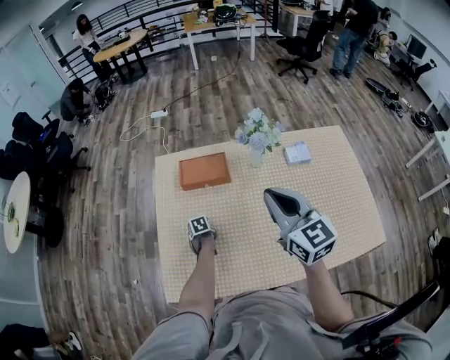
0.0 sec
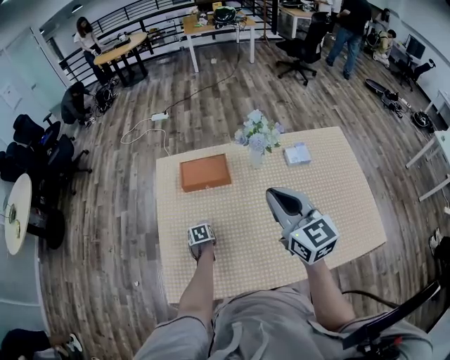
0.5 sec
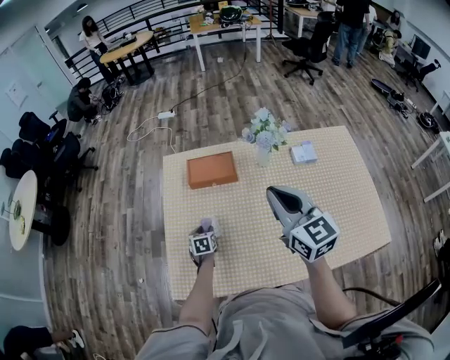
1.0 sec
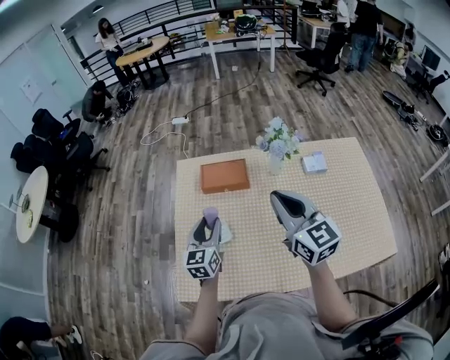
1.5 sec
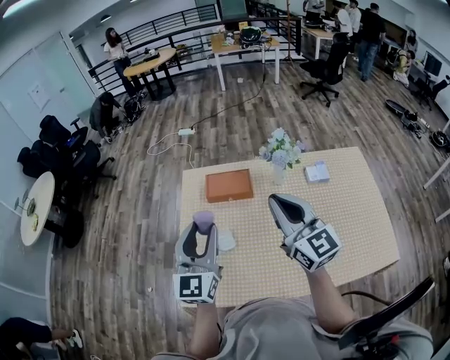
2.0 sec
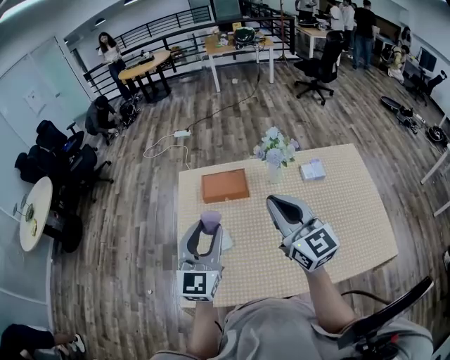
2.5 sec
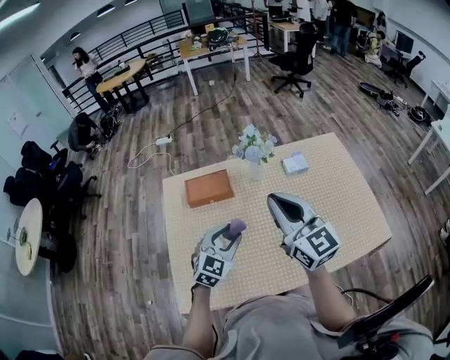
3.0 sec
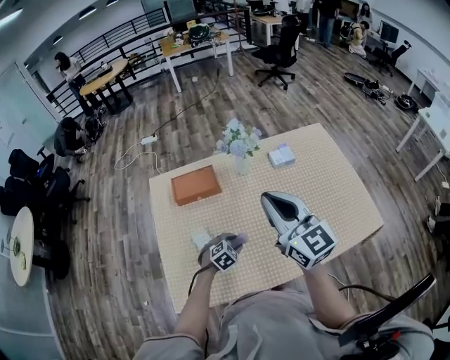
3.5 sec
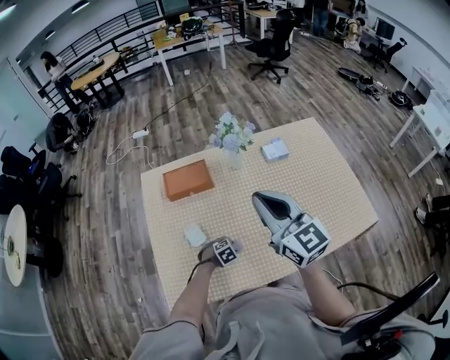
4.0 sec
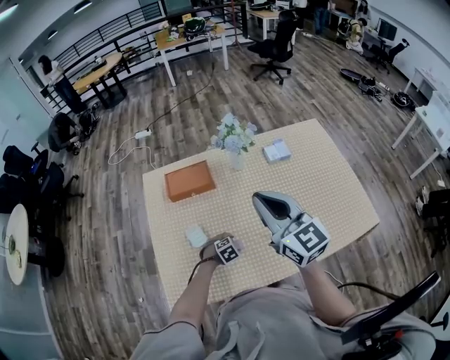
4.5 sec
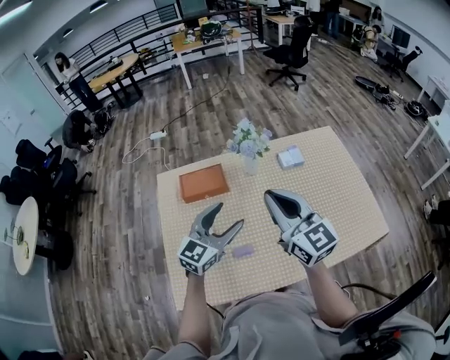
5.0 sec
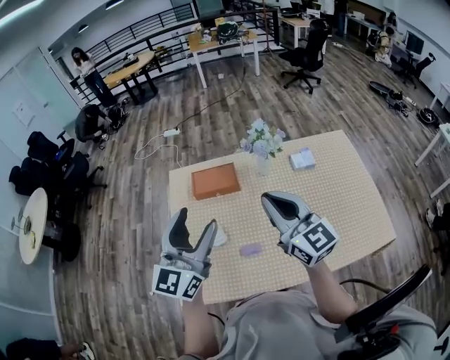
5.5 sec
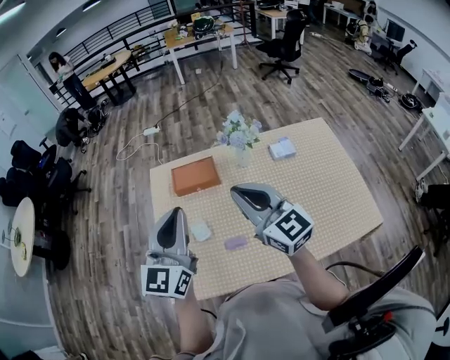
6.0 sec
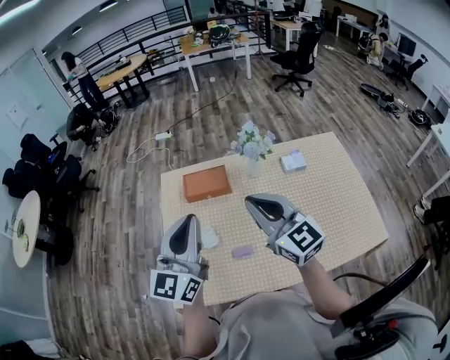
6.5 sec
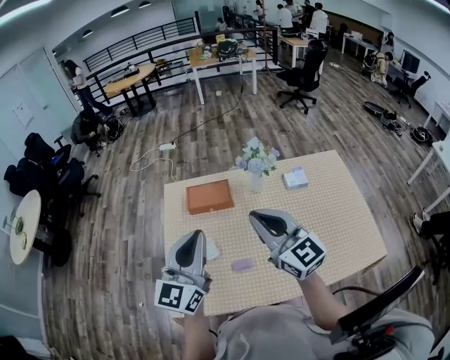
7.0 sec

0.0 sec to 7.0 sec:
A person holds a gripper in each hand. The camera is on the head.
0.0 sec to 2.0 sec: The right gripper is displaced upward by some 5 cm, while the left gripper goes some 50 cm upward, and angles its fingers upward, by about 70 degrees.
2.0 sec to 3.5 sec: The right gripper changes place by about 10 cm. Meanwhile the left gripper travels downward by roughly 40 cm, and angles its fingers downward, by about 60 degrees.
3.5 sec to 5.0 sec: The left gripper moves upward, about 30 cm, tilts its fingers about 50 degrees upward, and opens up.
5.0 sec to 7.0 sec: The left gripper moves upward, to the left and backward, about 15 cm, turns by some 30 degrees, and closes; the right gripper is displaced to the left by about 5 cm.

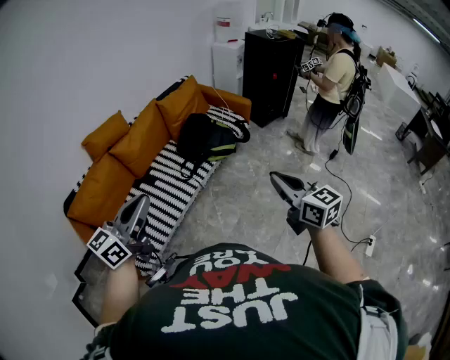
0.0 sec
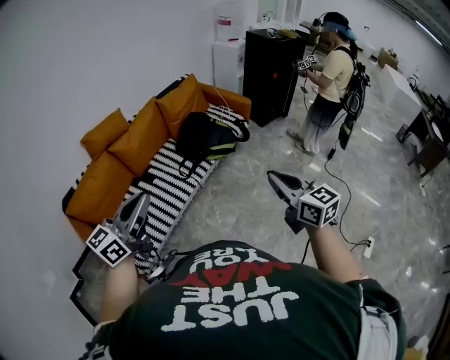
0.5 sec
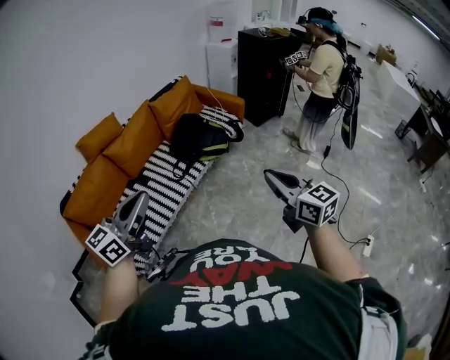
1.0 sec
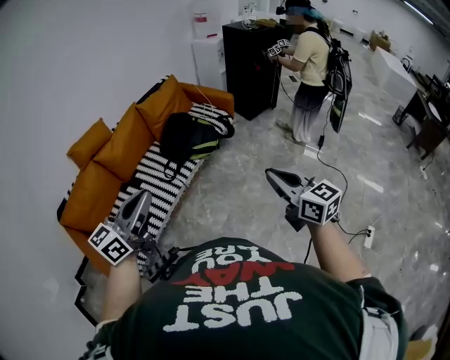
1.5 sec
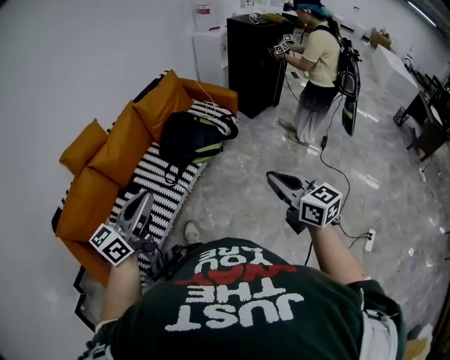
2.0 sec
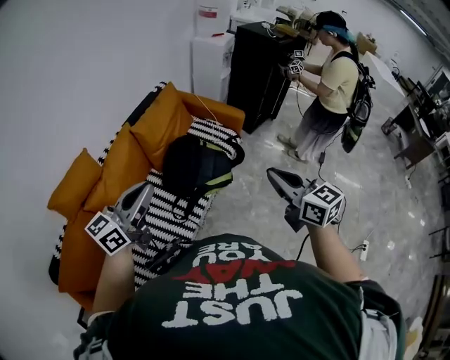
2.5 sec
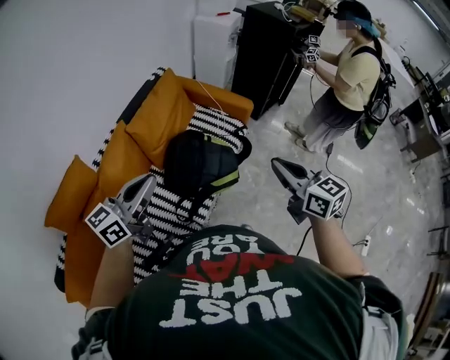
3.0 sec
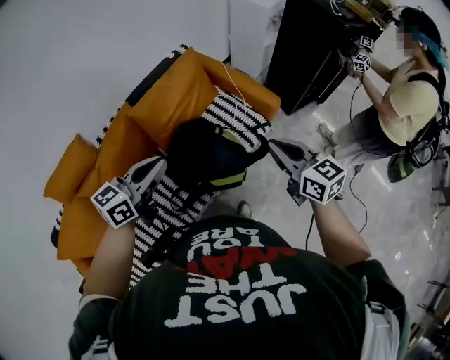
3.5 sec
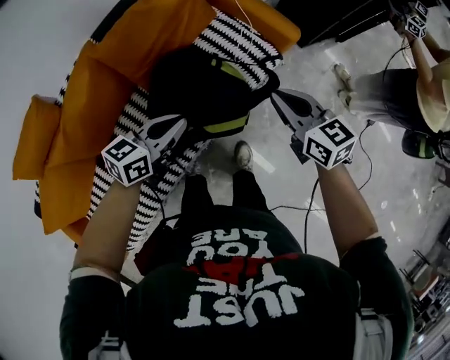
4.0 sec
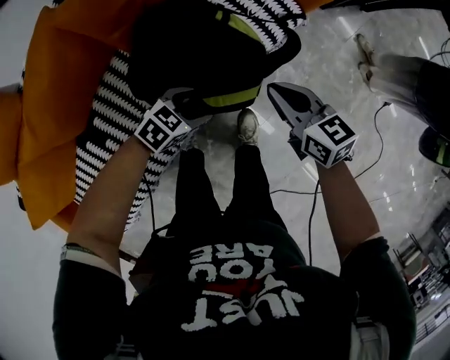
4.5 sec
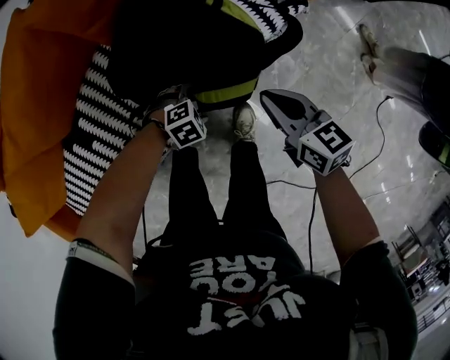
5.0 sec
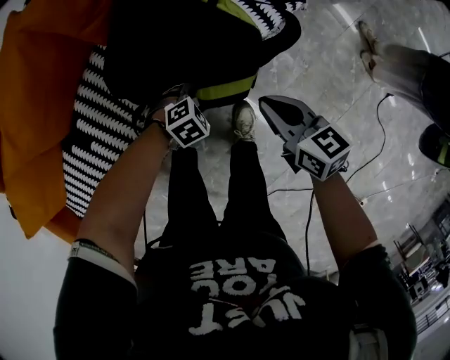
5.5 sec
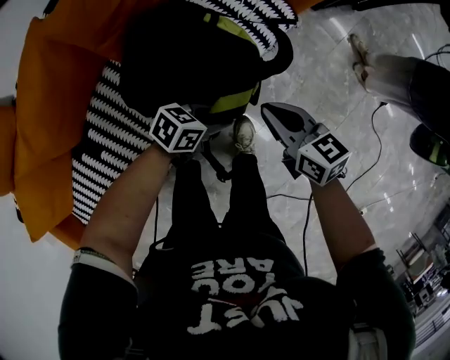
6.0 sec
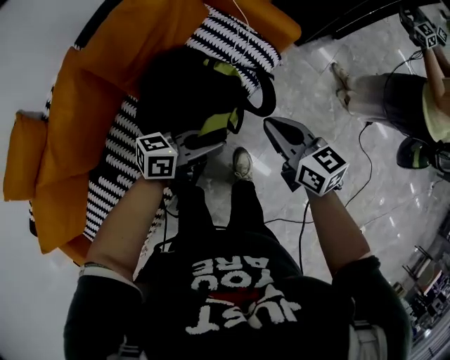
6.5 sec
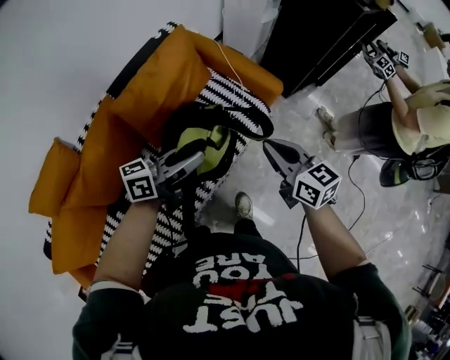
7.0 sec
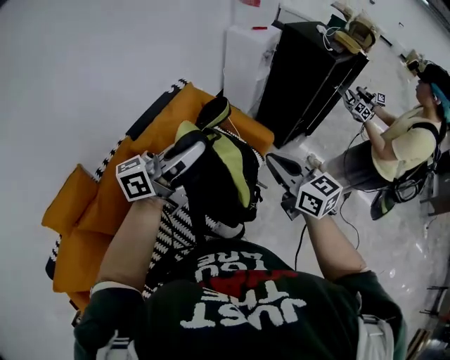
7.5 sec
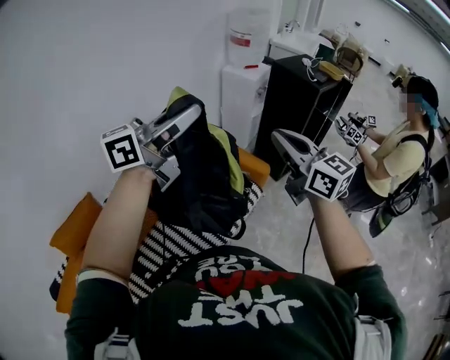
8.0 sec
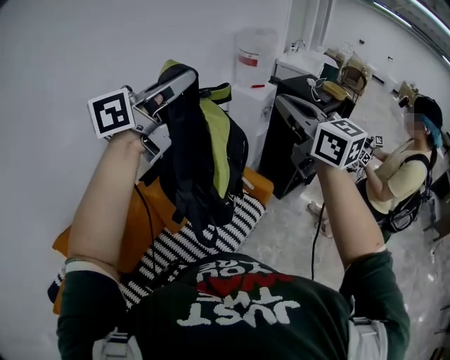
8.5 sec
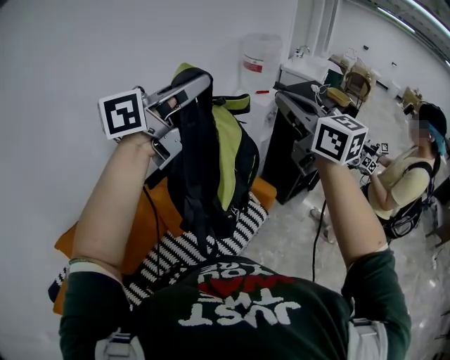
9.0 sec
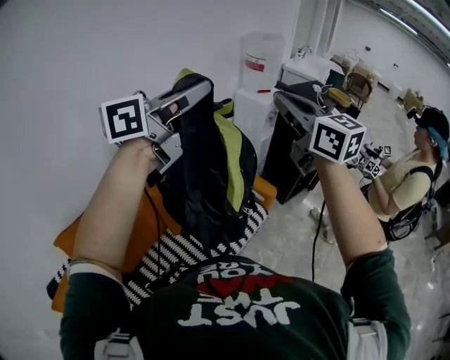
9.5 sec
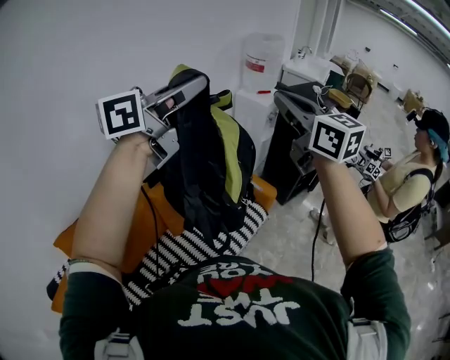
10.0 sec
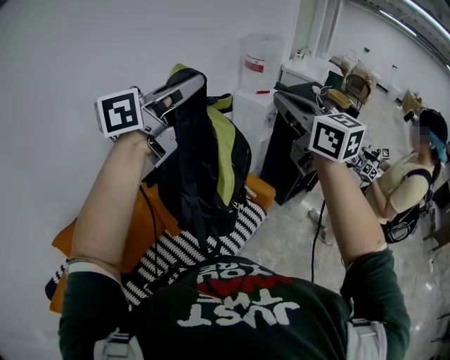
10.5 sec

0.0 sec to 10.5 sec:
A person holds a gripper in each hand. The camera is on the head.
0.0 sec to 2.0 sec: The grippers both shift forward and to the right by about 15 cm.
2.0 sec to 4.0 sec: The pair of grippers is taken forward, roughly 60 cm. The grippers both shift downward by about 25 cm. The left gripper turns by some 30 degrees.
4.0 sec to 6.5 sec: The right gripper travels downward by approximately 10 cm; the left gripper moves approximately 35 cm downward and comes back, turns by roughly 30 degrees, and opens, then closes again.
6.5 sec to 8.5 sec: Both grippers travel together upward, about 60 cm. The left gripper swivels about 50 degrees. The right gripper tilts its fingers roughly 30 degrees upward.
8.5 sec to 10.5 sec: The grippers stay close to where they were, moving slightly.

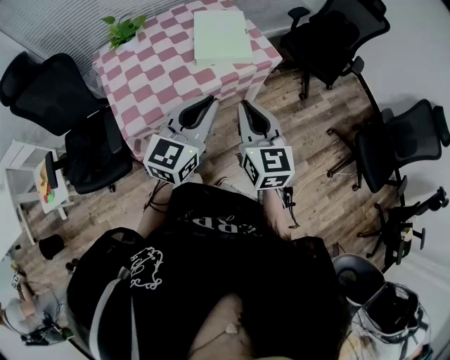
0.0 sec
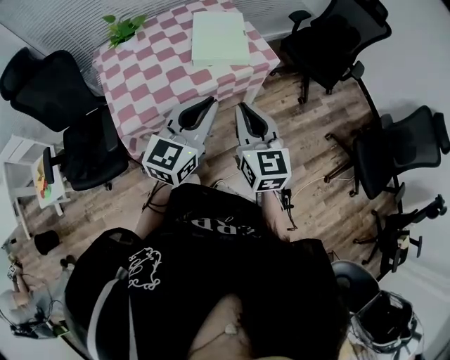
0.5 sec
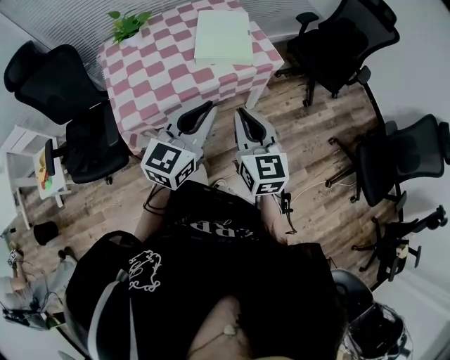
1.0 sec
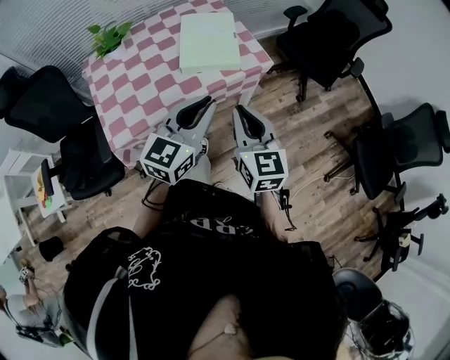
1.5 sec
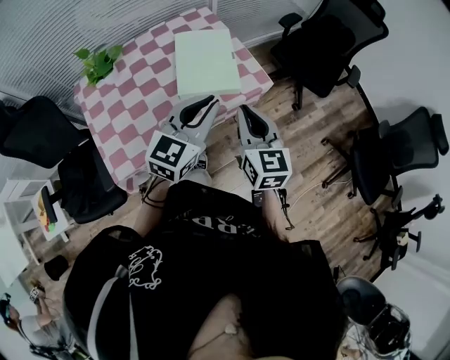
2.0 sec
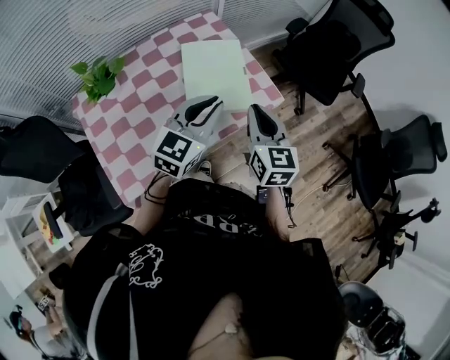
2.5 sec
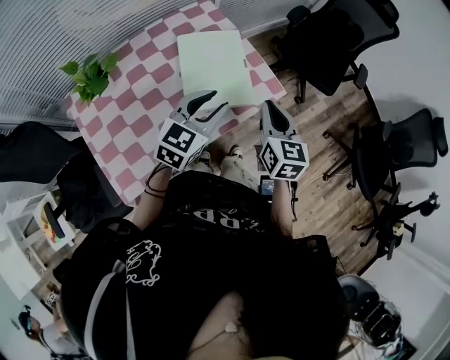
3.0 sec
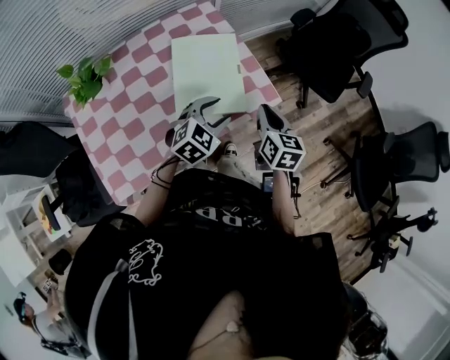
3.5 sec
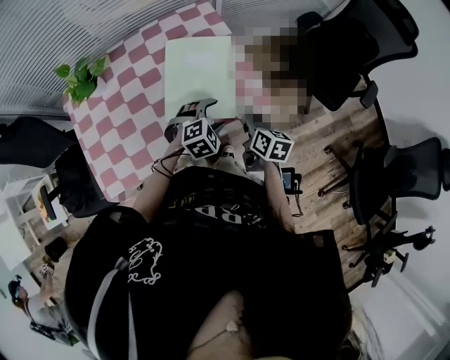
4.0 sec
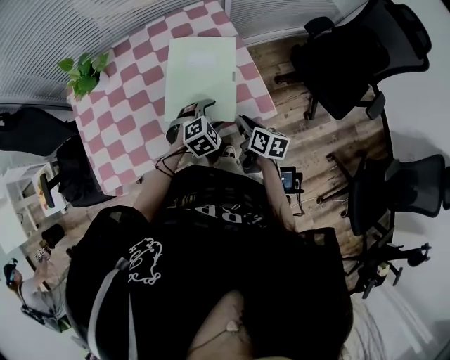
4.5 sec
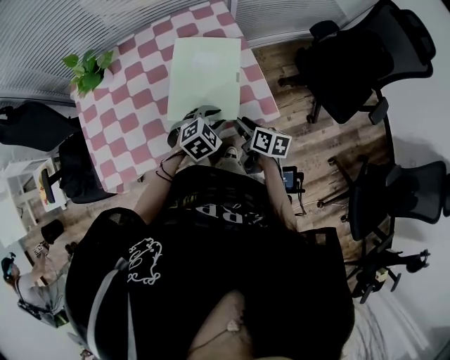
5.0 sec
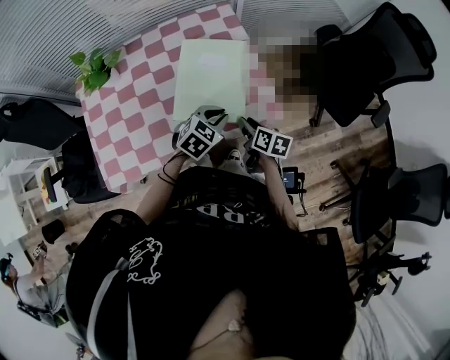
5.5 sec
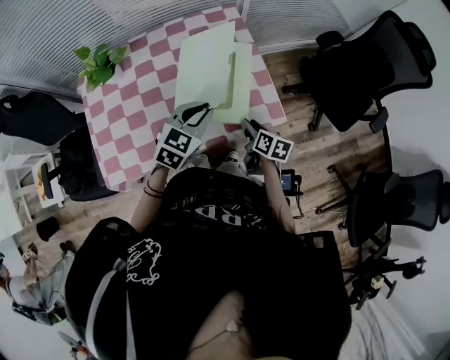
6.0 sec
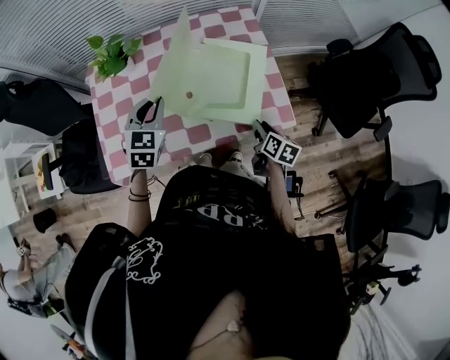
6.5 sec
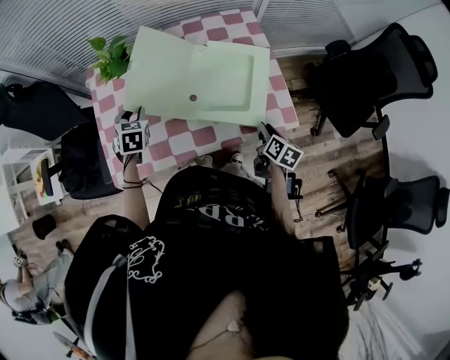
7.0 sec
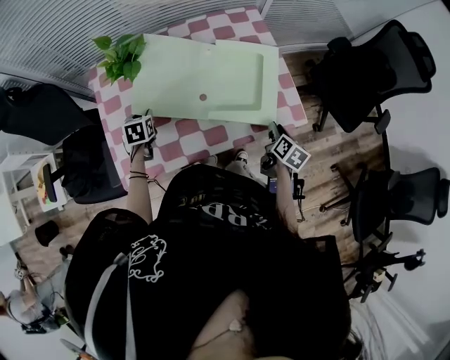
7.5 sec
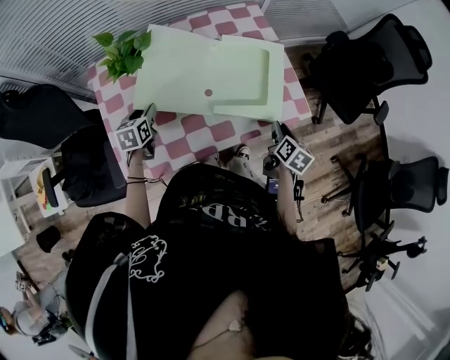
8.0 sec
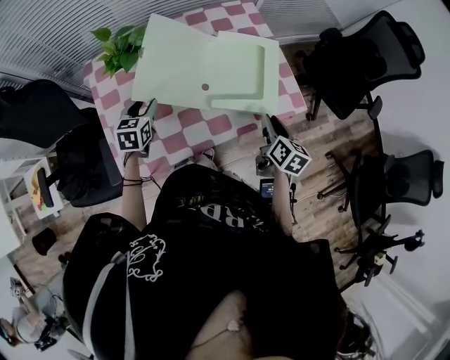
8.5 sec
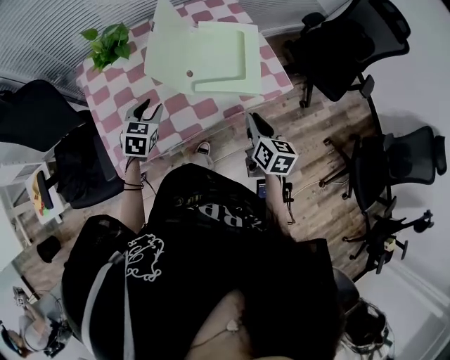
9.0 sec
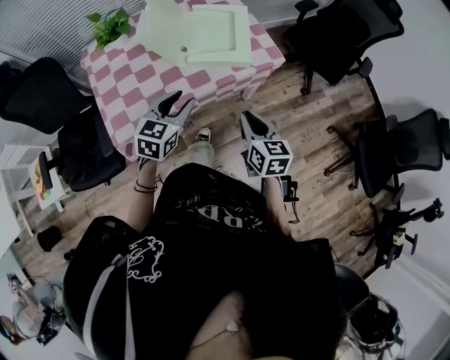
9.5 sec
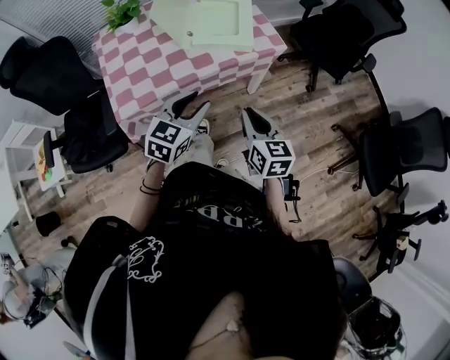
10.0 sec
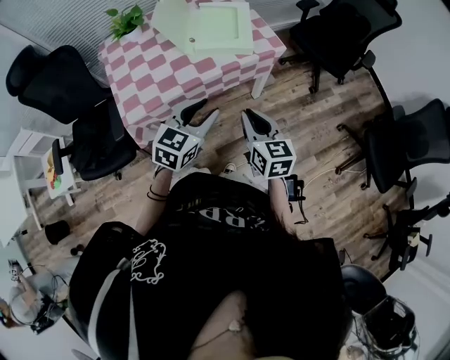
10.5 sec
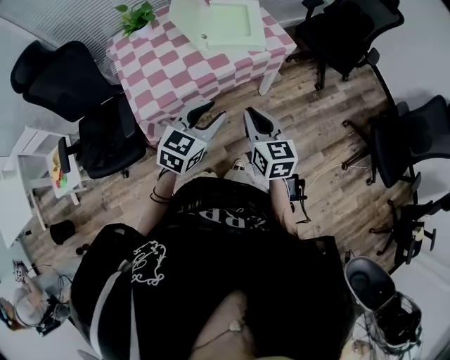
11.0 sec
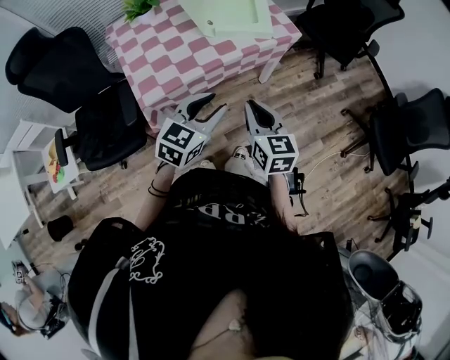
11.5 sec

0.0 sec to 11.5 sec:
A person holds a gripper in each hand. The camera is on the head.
0.0 sec to 2.0 sec: Both grippers travel together forward, approximately 20 cm.
2.0 sec to 4.0 sec: Both grippers move downward and forward, some 30 cm. The left gripper points its fingers roughly 50 degrees further downward, and opens its fingers, while the right gripper rotates some 40 degrees.
4.0 sec to 6.0 sec: The left gripper is displaced upward and to the left by about 15 cm, swivels some 40 degrees, and closes; the right gripper ends up about 5 cm from where it was, and opens up.
6.0 sec to 7.5 sec: The right gripper rotates roughly 20 degrees. Meanwhile the left gripper goes some 35 cm to the left and downward, and turns by some 50 degrees.
7.5 sec to 9.5 sec: The right gripper heads backward and upward, covering about 30 cm, and swivels about 30 degrees, while the left gripper moves to the right, backward and upward, approximately 35 cm, and turns by approximately 50 degrees.
9.5 sec to 11.5 sec: The left gripper goes roughly 20 cm backward, while the right gripper moves backward and to the left, approximately 20 cm.
